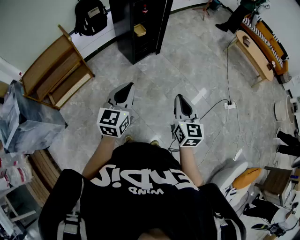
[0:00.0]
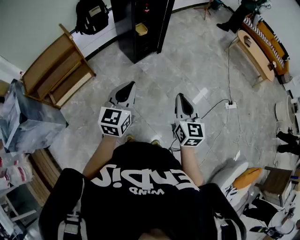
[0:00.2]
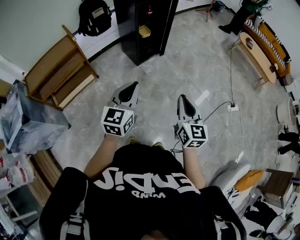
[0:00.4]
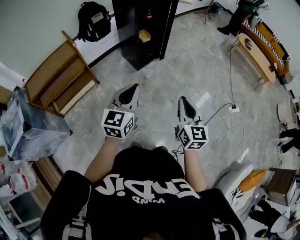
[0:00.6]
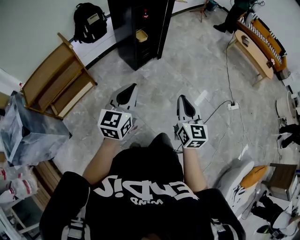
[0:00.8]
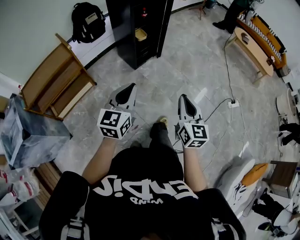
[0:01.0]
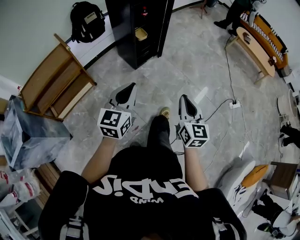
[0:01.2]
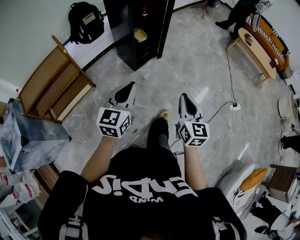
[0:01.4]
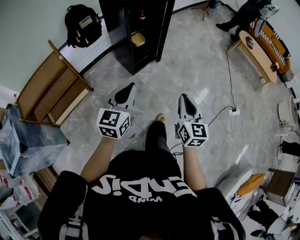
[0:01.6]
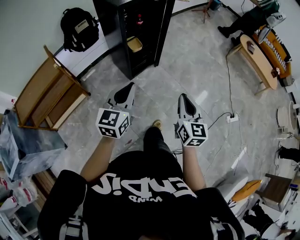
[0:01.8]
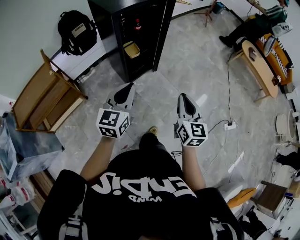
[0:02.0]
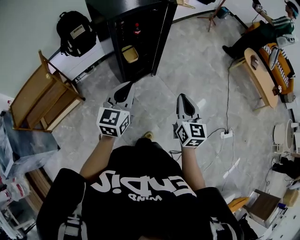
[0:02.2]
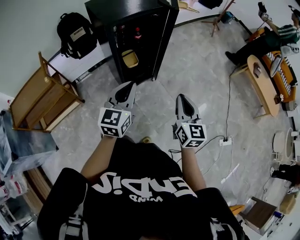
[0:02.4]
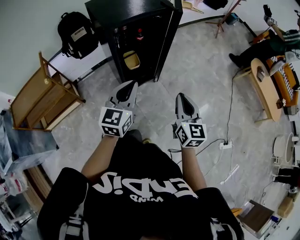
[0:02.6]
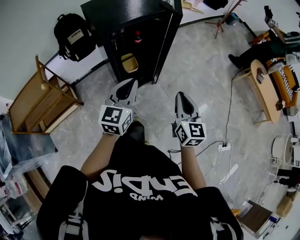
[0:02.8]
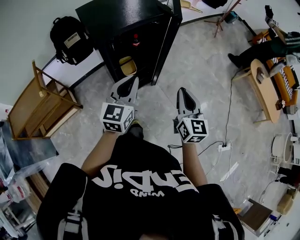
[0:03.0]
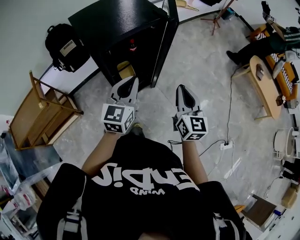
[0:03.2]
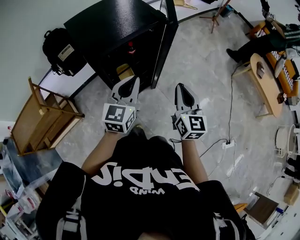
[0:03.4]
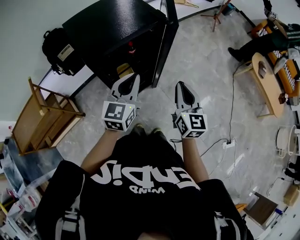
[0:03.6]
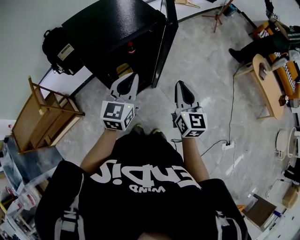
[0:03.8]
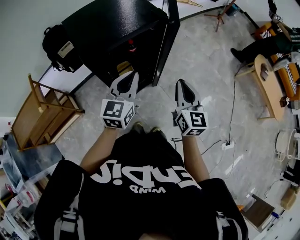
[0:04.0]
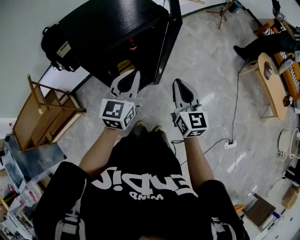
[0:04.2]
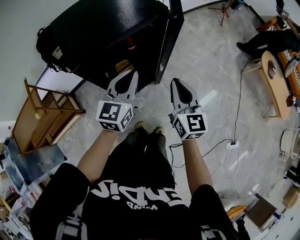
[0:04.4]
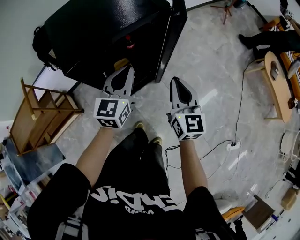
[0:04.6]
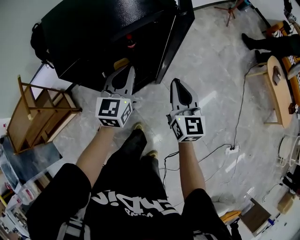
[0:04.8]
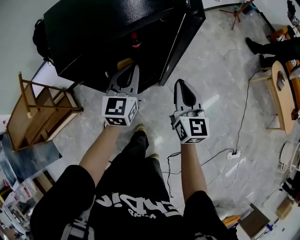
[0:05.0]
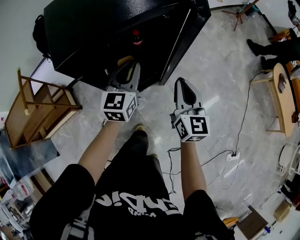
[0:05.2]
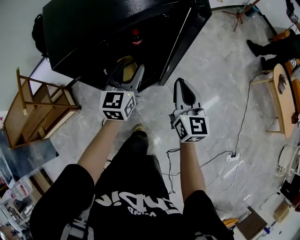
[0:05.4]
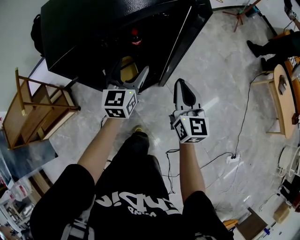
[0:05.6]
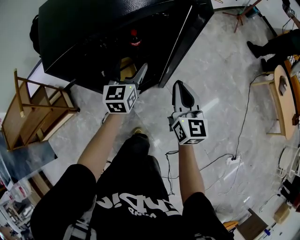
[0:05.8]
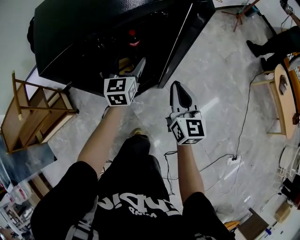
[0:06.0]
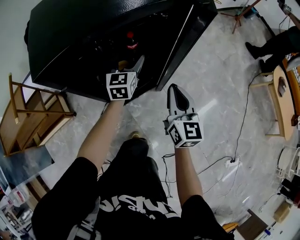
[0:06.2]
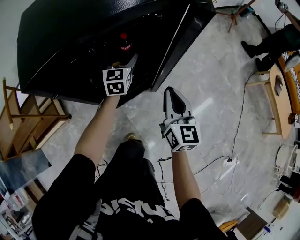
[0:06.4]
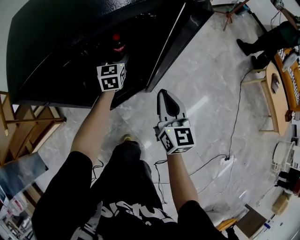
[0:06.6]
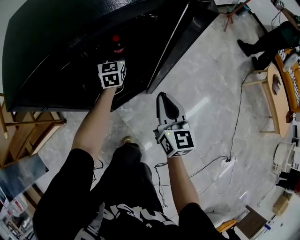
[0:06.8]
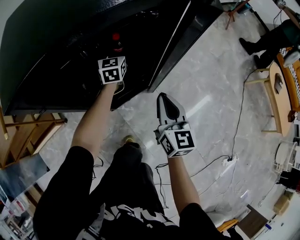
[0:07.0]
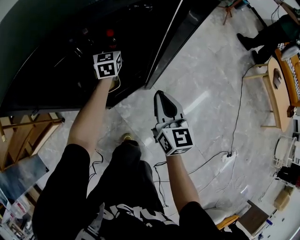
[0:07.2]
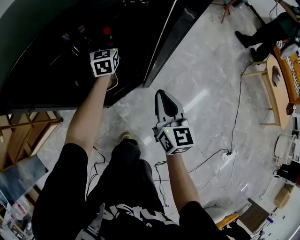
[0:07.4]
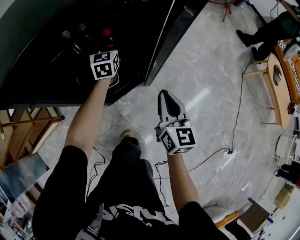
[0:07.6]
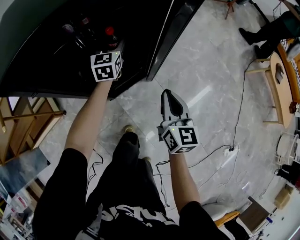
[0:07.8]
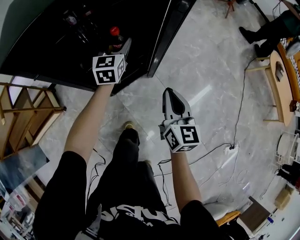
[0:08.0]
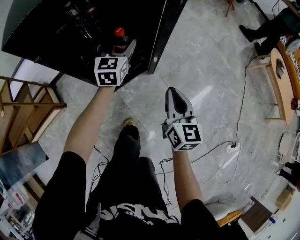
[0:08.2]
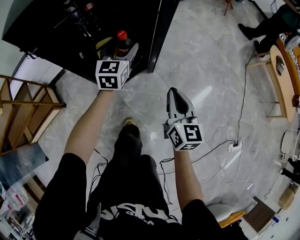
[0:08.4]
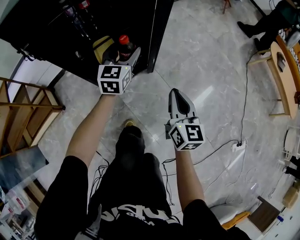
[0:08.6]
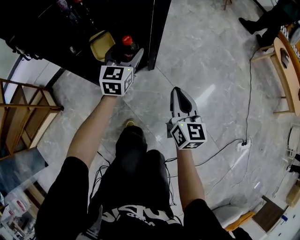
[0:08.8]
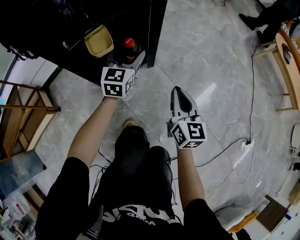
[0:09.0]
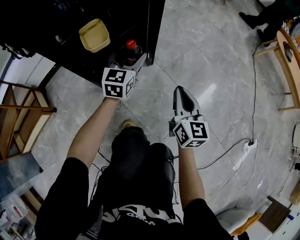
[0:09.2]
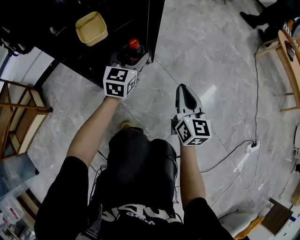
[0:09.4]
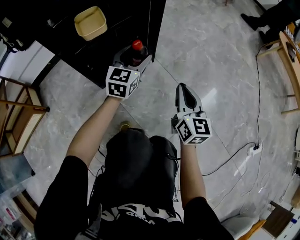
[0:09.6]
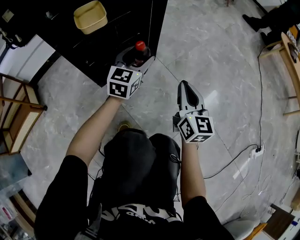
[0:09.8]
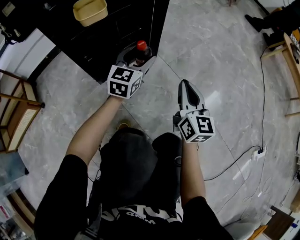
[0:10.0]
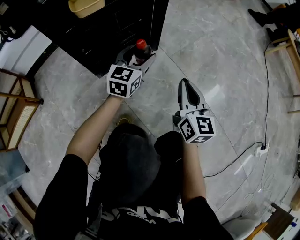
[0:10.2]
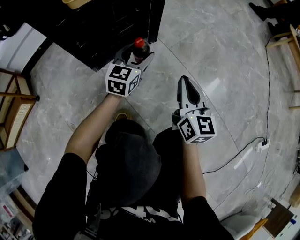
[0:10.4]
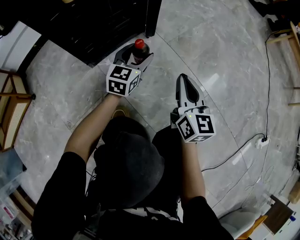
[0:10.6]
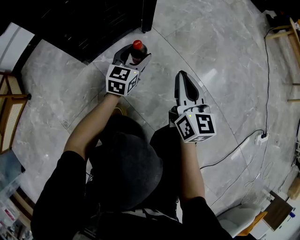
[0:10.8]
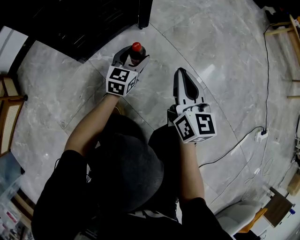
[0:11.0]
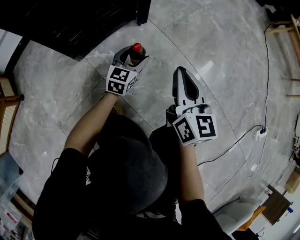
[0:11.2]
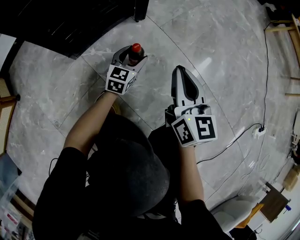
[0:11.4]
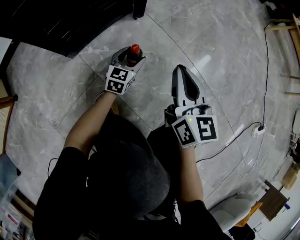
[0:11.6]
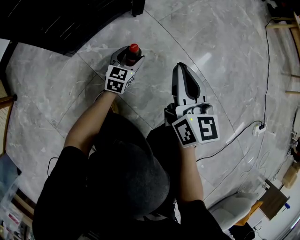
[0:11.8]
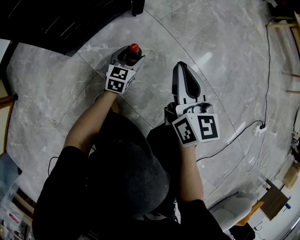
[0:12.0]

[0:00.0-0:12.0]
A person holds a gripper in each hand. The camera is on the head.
0.0 to 1.6 s: The grippers both shift forward by about 20 cm.
1.6 to 3.0 s: The pair of grippers is taken forward, some 40 cm.
3.0 to 4.4 s: Both grippers move forward, roughly 15 cm.
4.4 to 6.0 s: Both grippers travel together downward and forward, roughly 20 cm. The left gripper opens its fingers.
6.0 to 7.6 s: The right gripper heads downward, covering approximately 10 cm; the left gripper goes about 15 cm forward and downward.
7.6 to 9.0 s: The right gripper moves downward and backward, some 20 cm; the left gripper goes some 25 cm backward, to the right and downward, and rotates roughly 20 degrees.
9.0 to 10.4 s: The two grippers go about 25 cm downward.
10.4 to 12.0 s: The left gripper shifts some 20 cm downward.

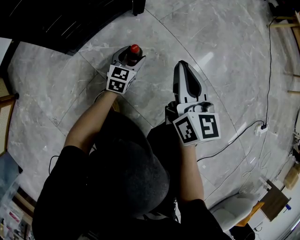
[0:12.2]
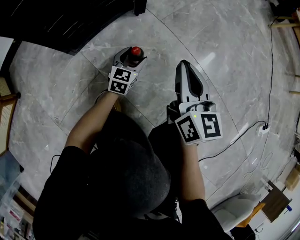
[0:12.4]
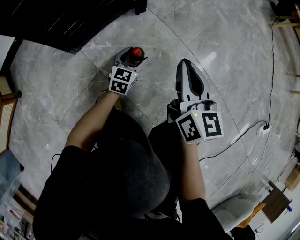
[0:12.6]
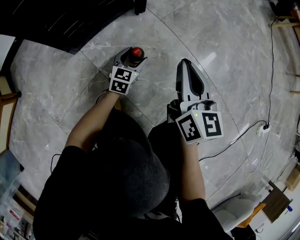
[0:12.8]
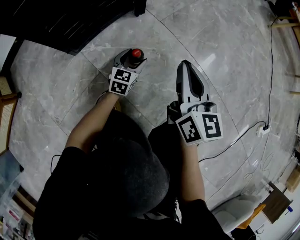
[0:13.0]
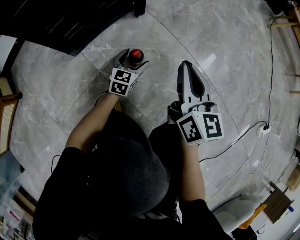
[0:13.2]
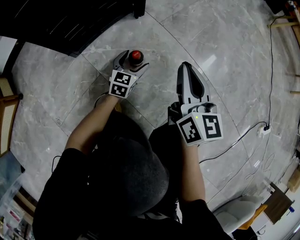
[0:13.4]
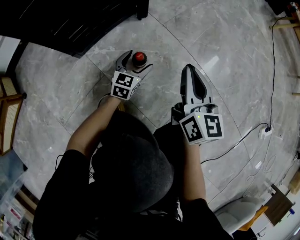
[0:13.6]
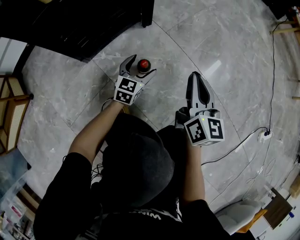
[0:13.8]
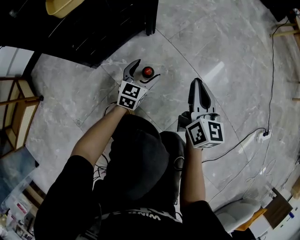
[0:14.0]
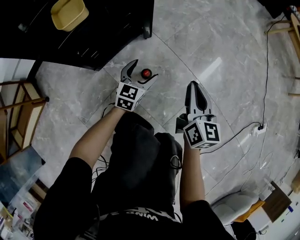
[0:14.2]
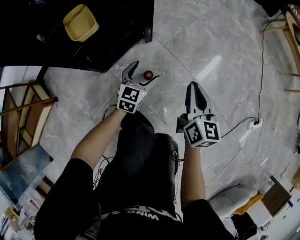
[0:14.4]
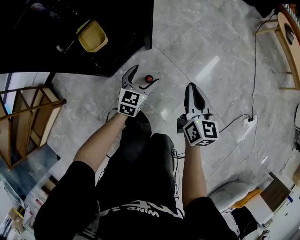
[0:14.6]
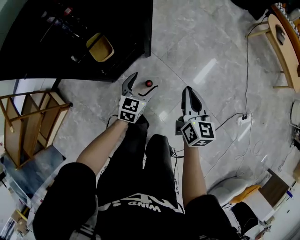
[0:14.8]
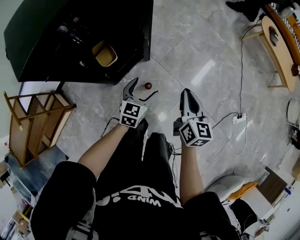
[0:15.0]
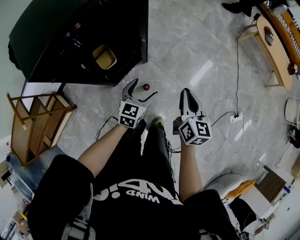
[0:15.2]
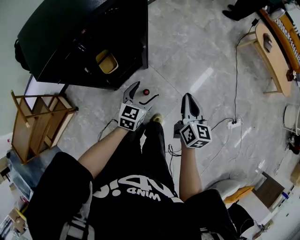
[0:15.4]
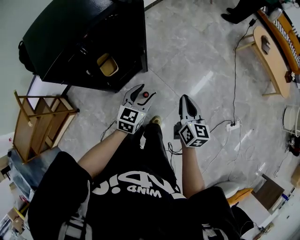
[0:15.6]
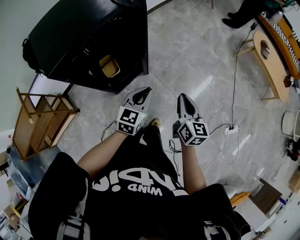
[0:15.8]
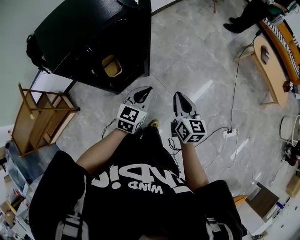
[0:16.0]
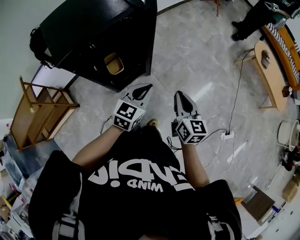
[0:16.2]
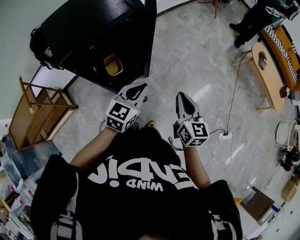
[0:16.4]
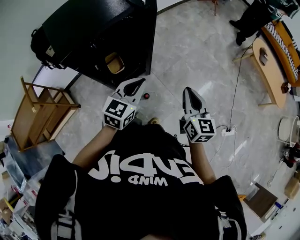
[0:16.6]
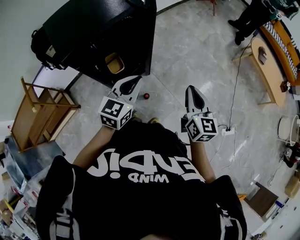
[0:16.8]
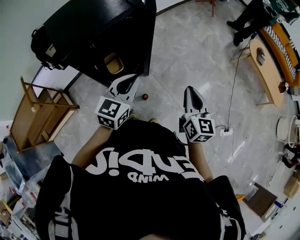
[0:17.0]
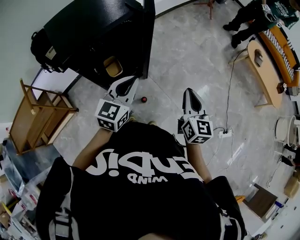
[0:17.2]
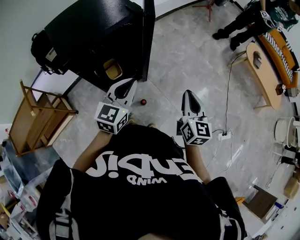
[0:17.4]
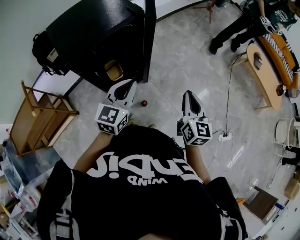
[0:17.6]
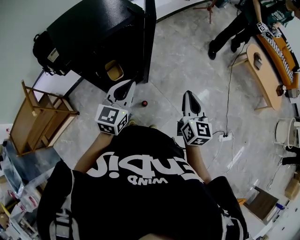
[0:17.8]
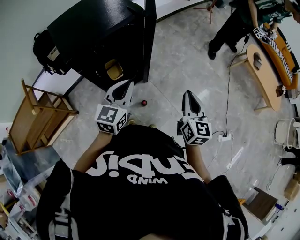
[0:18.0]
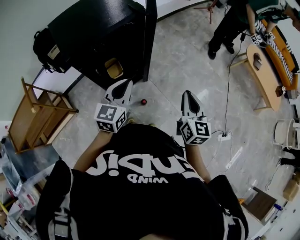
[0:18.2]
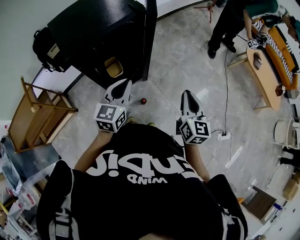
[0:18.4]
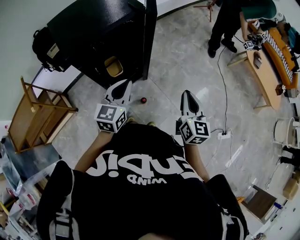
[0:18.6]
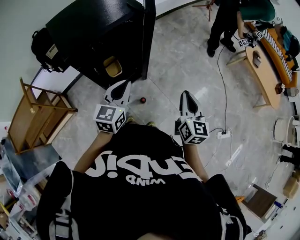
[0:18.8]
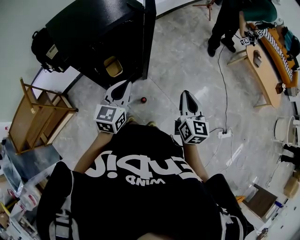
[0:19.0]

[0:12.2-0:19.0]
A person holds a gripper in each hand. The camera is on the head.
12.2 to 13.6 s: The grippers stay close to where they were, moving slightly.
13.6 to 15.0 s: Both grippers move upward, approximately 50 cm.
15.0 to 16.2 s: The right gripper goes some 15 cm upward. Meanwhile the left gripper heads upward, covering approximately 25 cm, and closes its fingers.
16.2 to 17.6 s: The right gripper goes about 5 cm upward; the left gripper heads upward and to the left, covering roughly 10 cm.
17.6 to 19.0 s: The grippers move only a little.

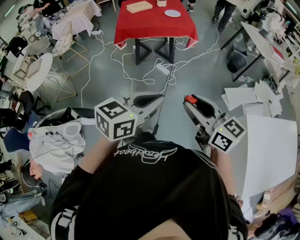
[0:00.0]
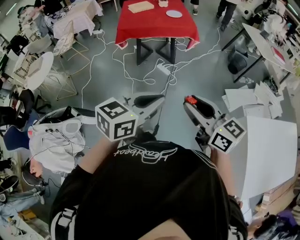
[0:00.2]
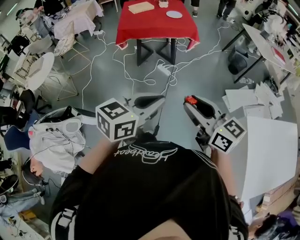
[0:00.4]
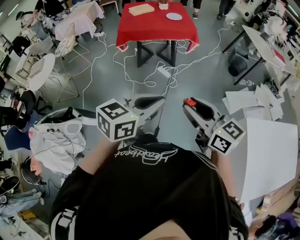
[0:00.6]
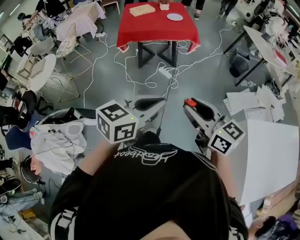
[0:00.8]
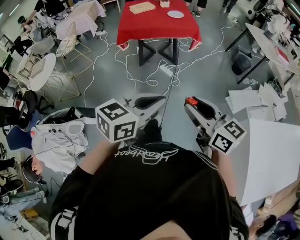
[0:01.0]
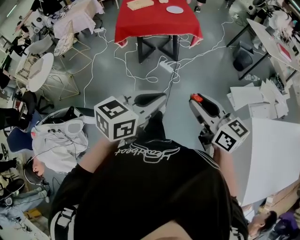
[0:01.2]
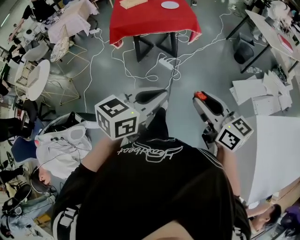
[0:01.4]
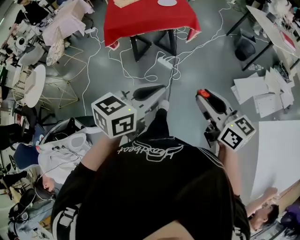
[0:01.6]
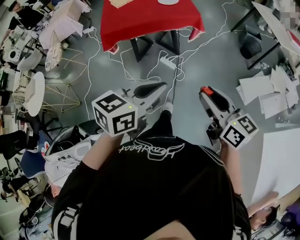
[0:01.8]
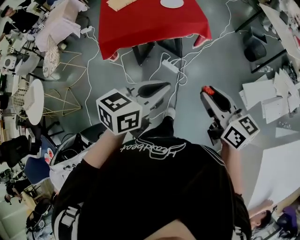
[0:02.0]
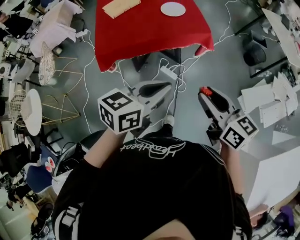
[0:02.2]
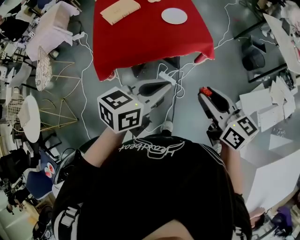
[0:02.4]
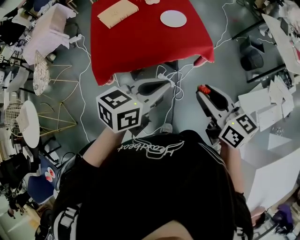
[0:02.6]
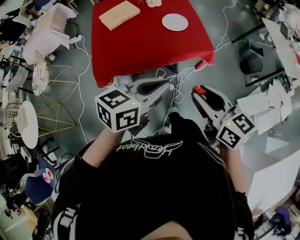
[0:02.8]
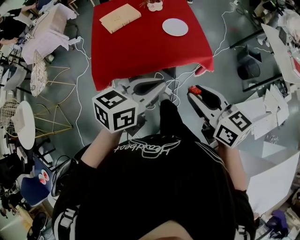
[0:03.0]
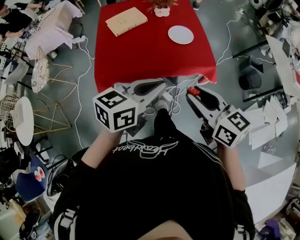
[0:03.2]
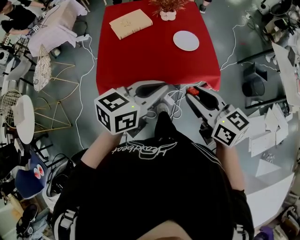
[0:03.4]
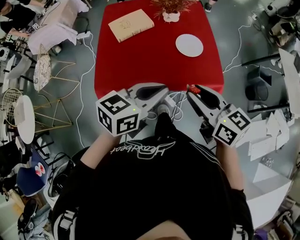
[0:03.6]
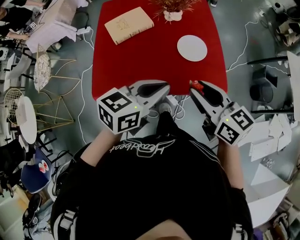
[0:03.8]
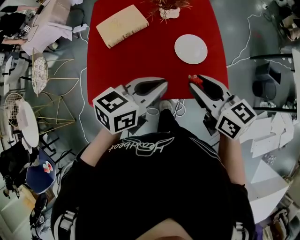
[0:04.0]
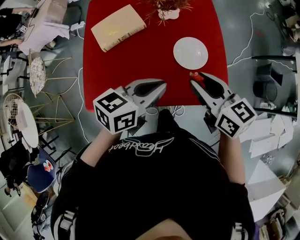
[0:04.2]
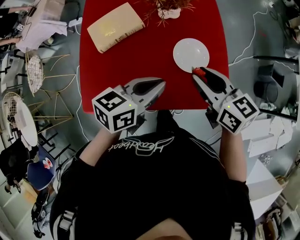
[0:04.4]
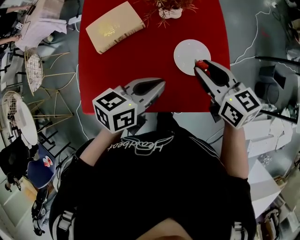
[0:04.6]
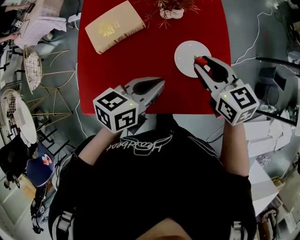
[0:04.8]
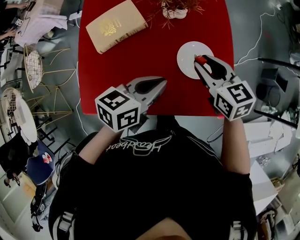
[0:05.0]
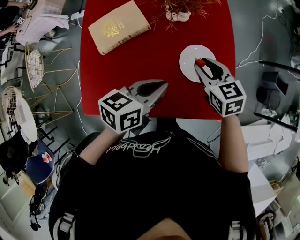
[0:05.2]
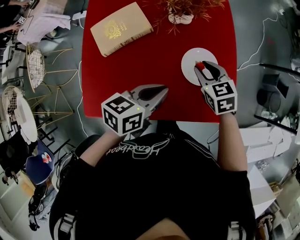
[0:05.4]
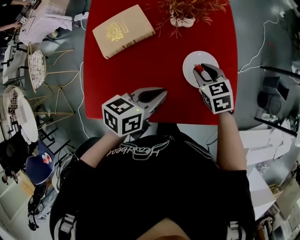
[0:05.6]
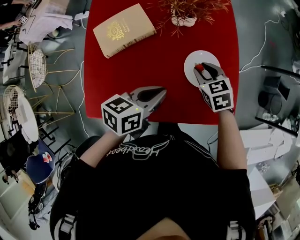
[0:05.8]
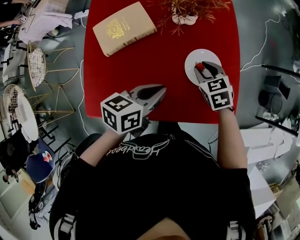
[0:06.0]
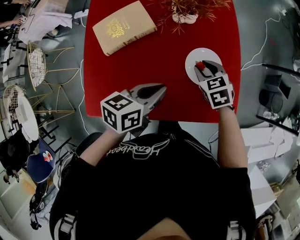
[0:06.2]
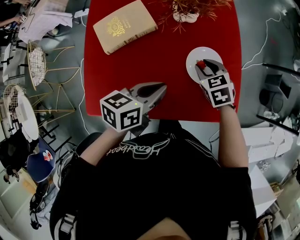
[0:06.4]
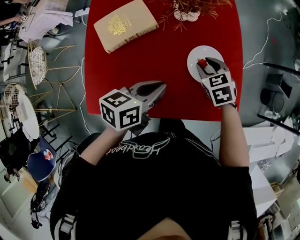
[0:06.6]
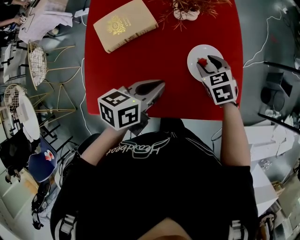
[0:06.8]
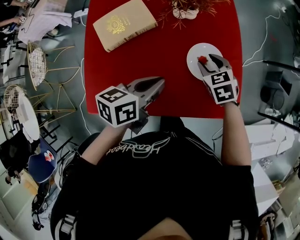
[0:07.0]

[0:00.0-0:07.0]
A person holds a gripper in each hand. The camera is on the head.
0.0 to 1.4 s: The grippers both shift forward by roughly 5 cm.
1.4 to 2.8 s: The two grippers travel together, forward, roughly 50 cm.
2.8 to 4.2 s: The grippers both shift forward by about 35 cm.
4.2 to 5.6 s: The left gripper is displaced downward and forward by about 10 cm. The right gripper heads downward and forward, covering roughly 20 cm, and turns by approximately 30 degrees.
5.6 to 7.0 s: The grippers move only a little.
